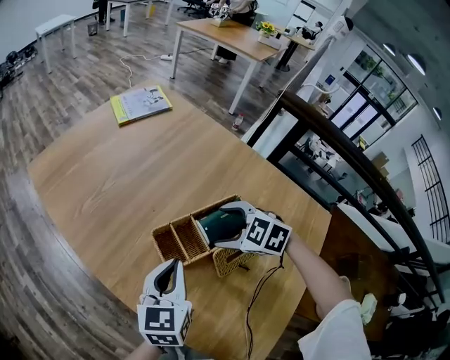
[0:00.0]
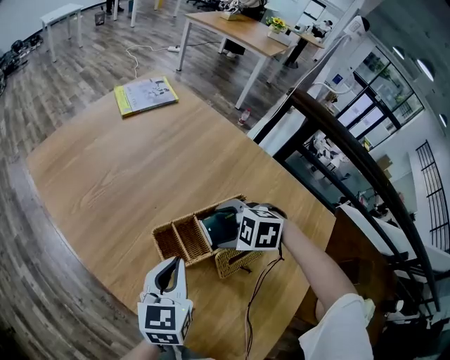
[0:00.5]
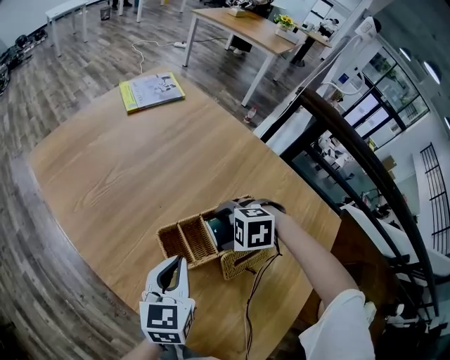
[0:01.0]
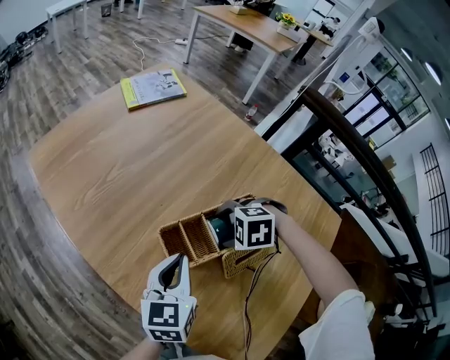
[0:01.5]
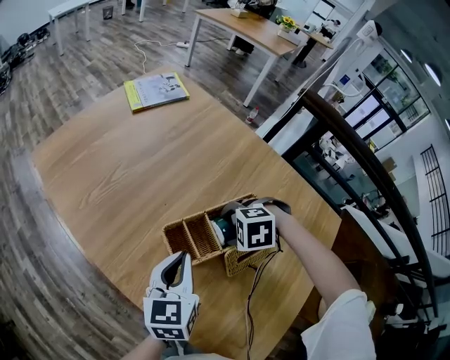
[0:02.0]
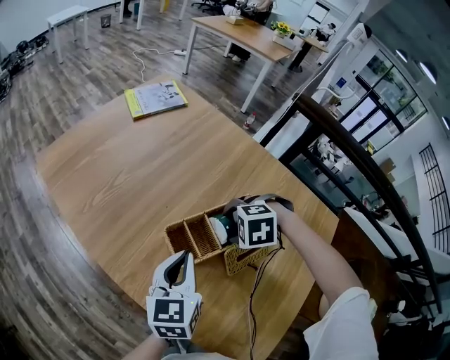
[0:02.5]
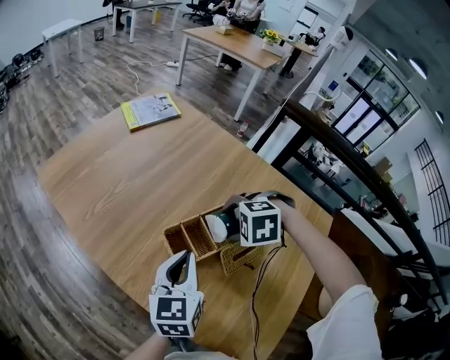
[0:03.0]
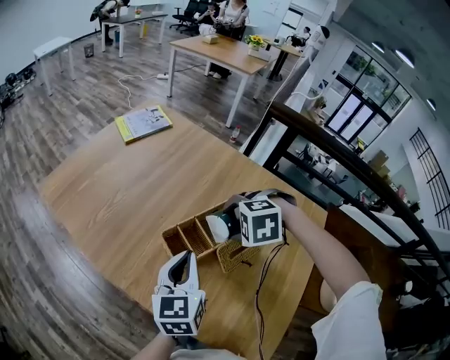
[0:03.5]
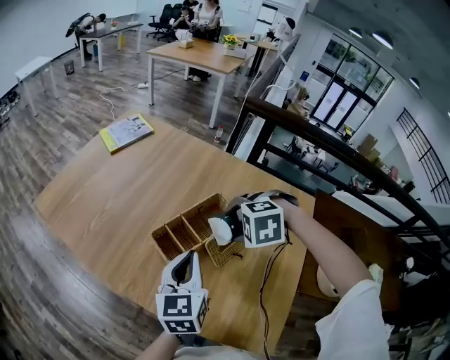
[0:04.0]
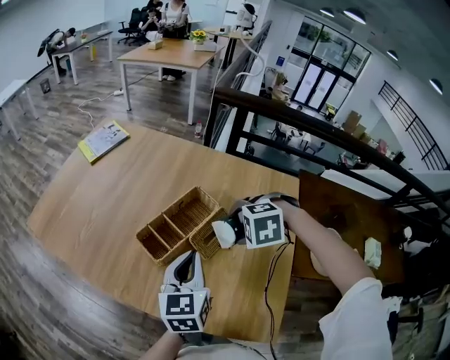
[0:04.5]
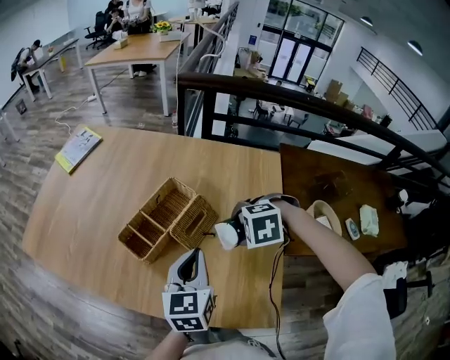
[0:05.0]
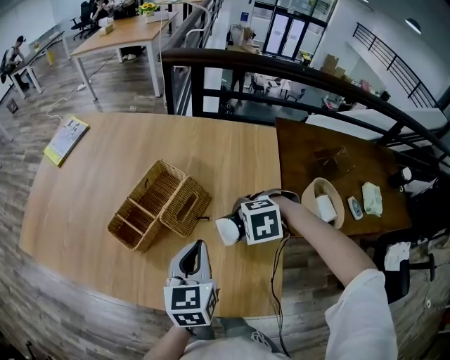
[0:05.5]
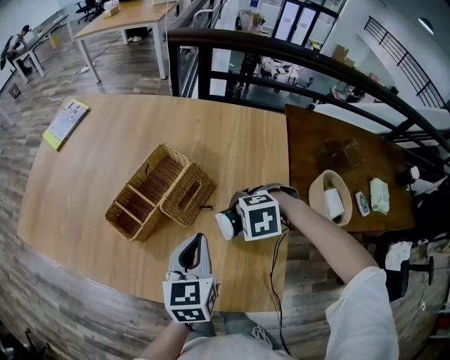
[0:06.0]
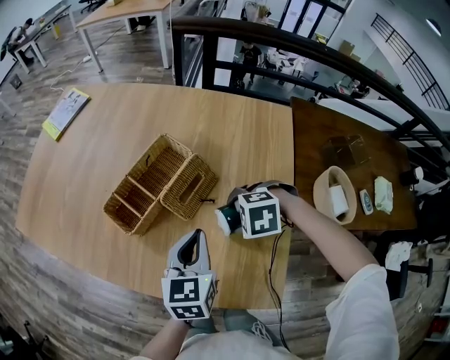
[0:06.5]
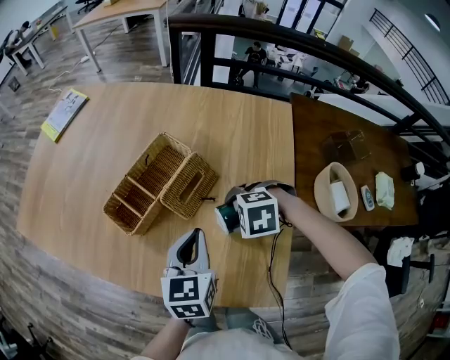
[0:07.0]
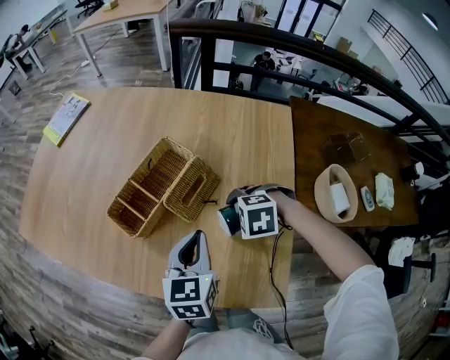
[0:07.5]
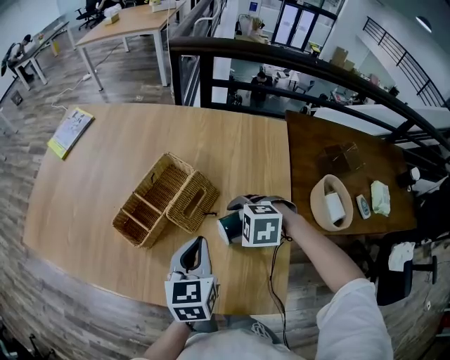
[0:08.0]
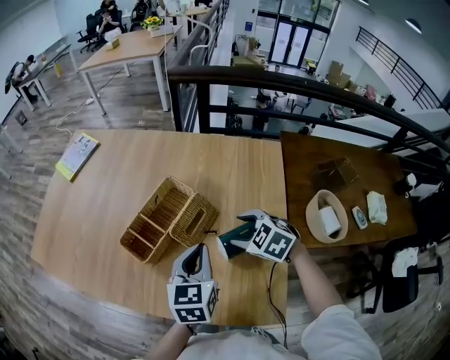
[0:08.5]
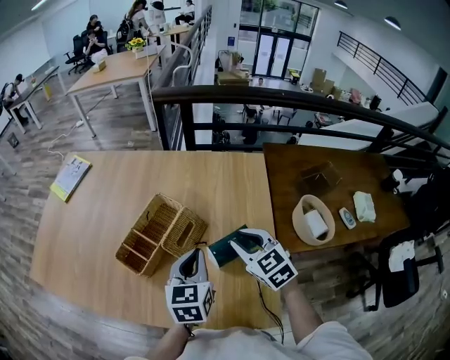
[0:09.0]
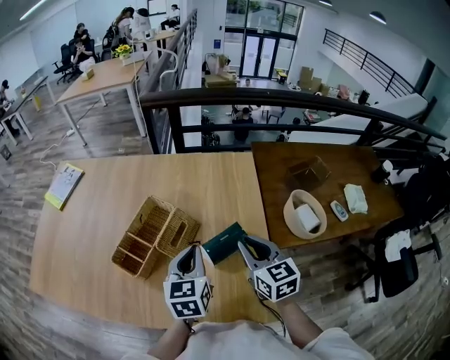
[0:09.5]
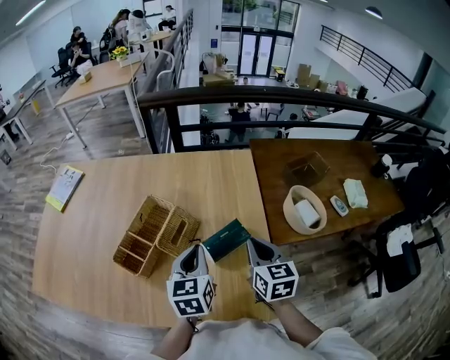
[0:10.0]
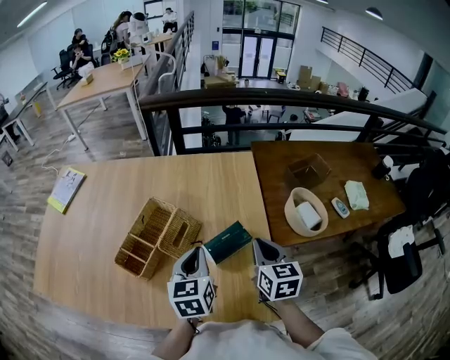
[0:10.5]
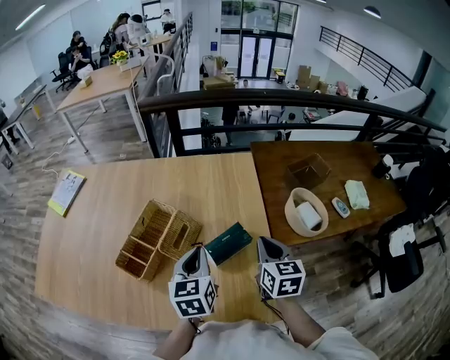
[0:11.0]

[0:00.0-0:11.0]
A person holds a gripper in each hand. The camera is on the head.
0:00.0 to 0:02.0: The right gripper shifts some 5 cm downward, and rotates about 40 degrees.
0:02.0 to 0:03.5: The right gripper moves upward, about 10 cm; the left gripper goes roughly 5 cm upward.
0:03.5 to 0:05.5: The left gripper moves about 20 cm, and rotates approximately 30 degrees. Meanwhile the right gripper moves roughly 25 cm, and rotates approximately 30 degrees.
0:05.5 to 0:07.5: The right gripper changes place by some 5 cm.
0:07.5 to 0:09.0: The right gripper is displaced upward by about 15 cm, tilts its fingers some 40 degrees upward, and closes. The left gripper moves upward, roughly 5 cm.
0:09.0 to 0:11.0: The right gripper moves to the right, some 10 cm, and swivels approximately 40 degrees.

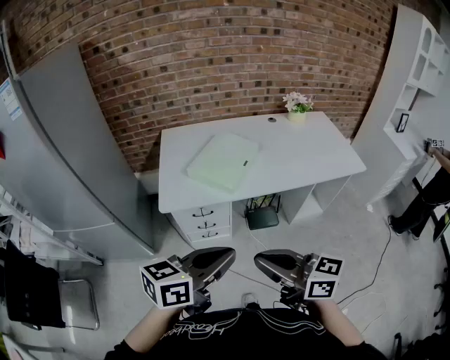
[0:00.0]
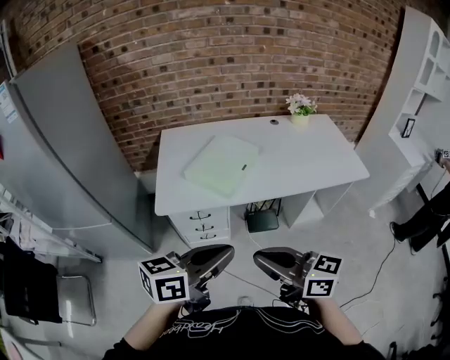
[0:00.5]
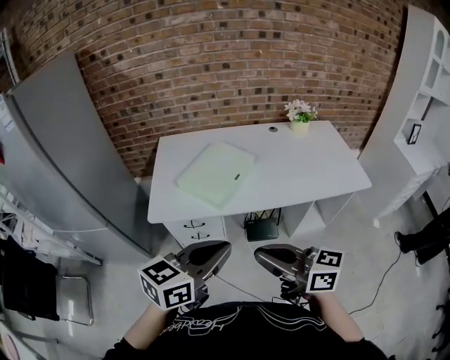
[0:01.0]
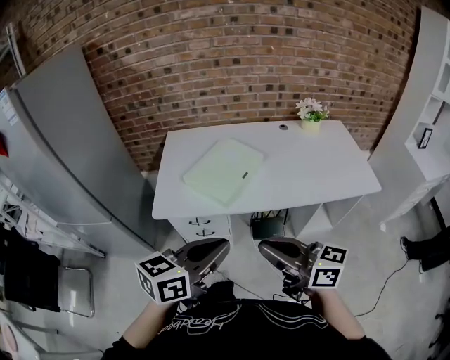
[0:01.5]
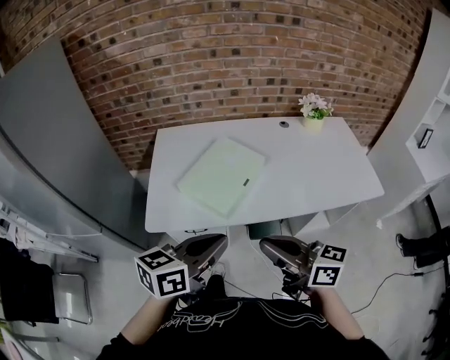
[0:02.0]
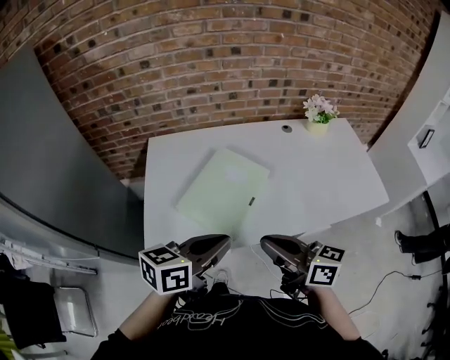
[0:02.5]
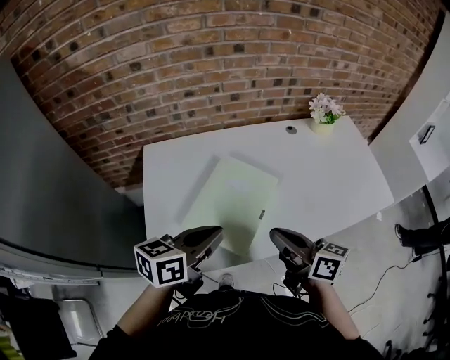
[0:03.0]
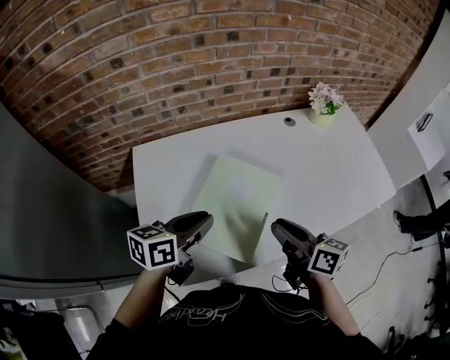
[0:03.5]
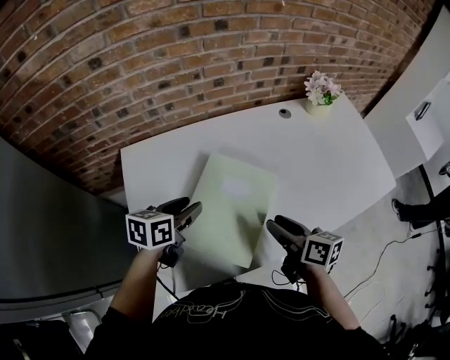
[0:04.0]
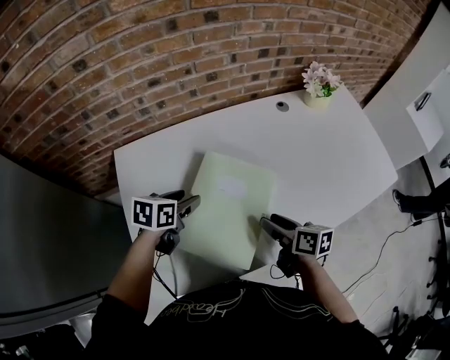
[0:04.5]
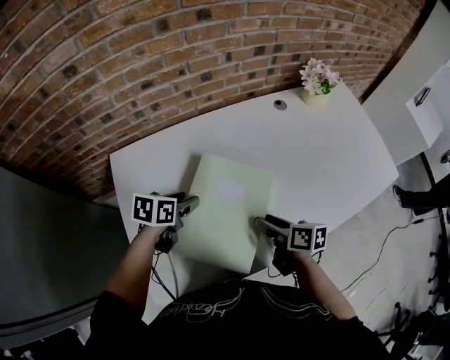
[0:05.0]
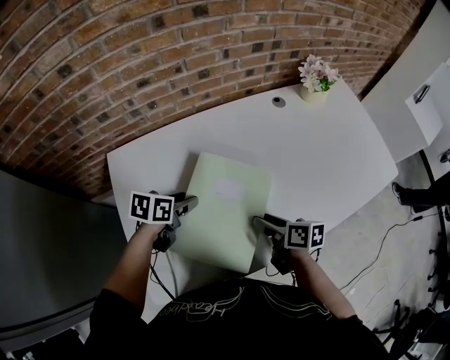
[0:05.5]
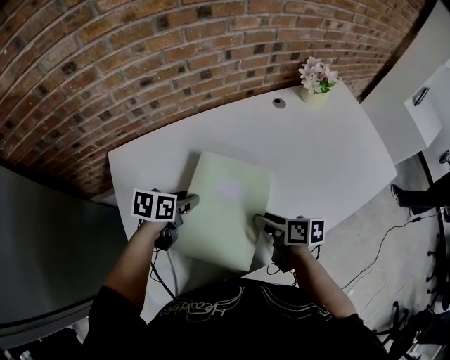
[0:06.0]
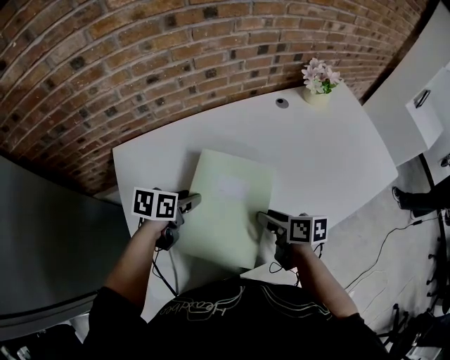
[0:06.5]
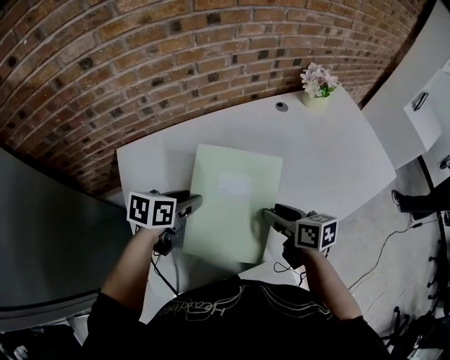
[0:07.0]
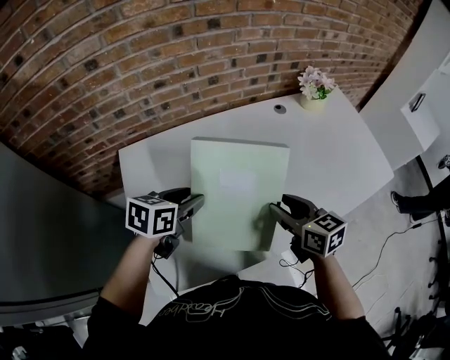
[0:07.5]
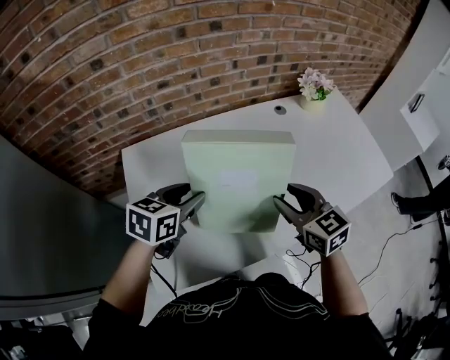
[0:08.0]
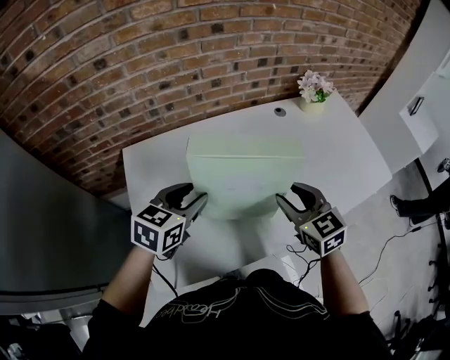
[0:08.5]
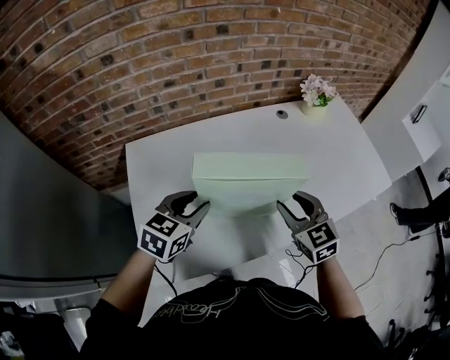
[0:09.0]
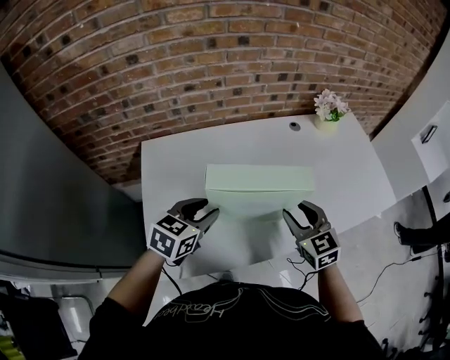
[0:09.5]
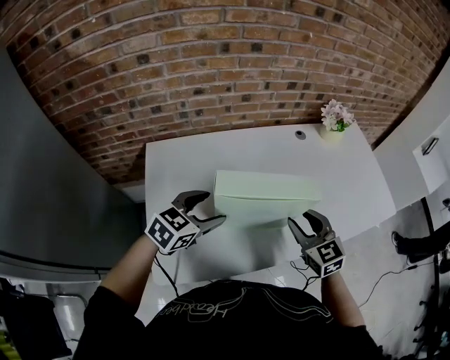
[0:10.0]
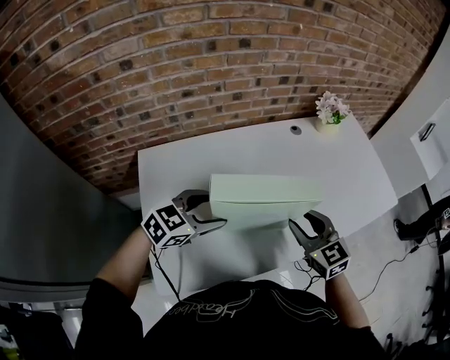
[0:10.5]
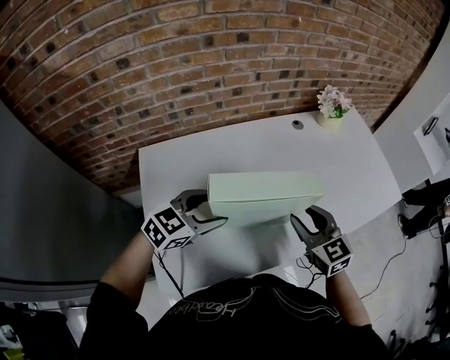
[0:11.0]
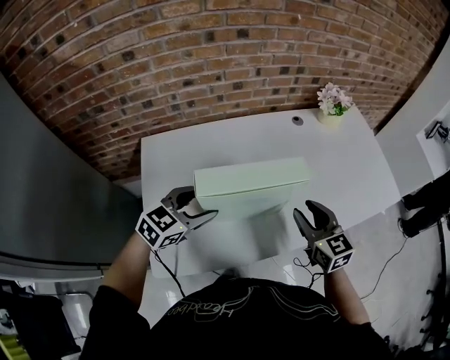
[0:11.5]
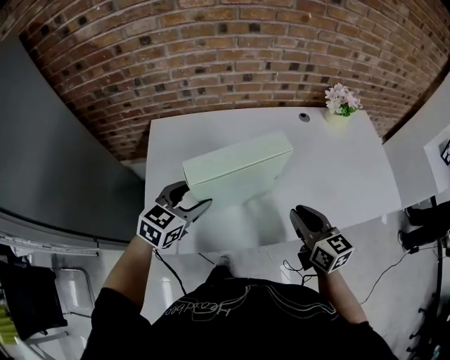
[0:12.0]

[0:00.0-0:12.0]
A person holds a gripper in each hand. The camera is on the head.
0:00.0 to 0:02.0: The right gripper goes about 20 cm forward and to the right. The left gripper moves forward, about 20 cm.
0:02.0 to 0:04.0: The left gripper travels forward, to the left and downward by roughly 40 cm, changes its angle by about 20 degrees, and opens; the right gripper travels forward and downward by roughly 30 cm, turns by approximately 40 degrees, and opens its fingers.
0:04.0 to 0:06.0: The grippers both shift downward by approximately 10 cm.
0:06.0 to 0:08.0: Both grippers travel together upward, some 15 cm. The left gripper swivels roughly 20 degrees. Meanwhile the right gripper twists about 50 degrees counterclockwise, seen from behind.
0:08.0 to 0:10.0: The left gripper opens its fingers.
0:10.0 to 0:12.0: The right gripper changes place by approximately 5 cm, and swivels approximately 30 degrees.

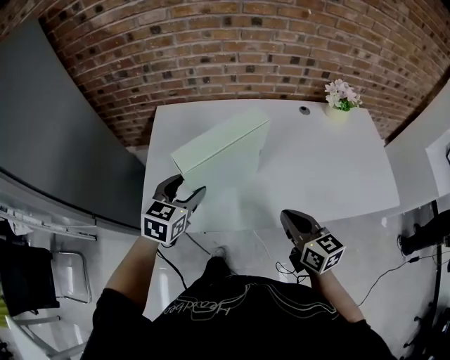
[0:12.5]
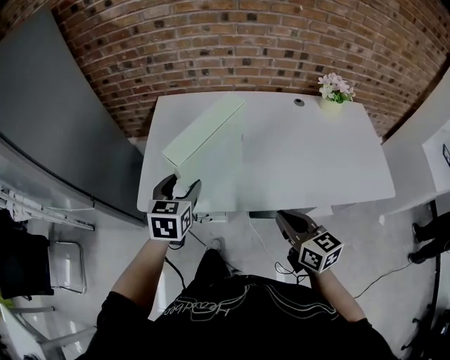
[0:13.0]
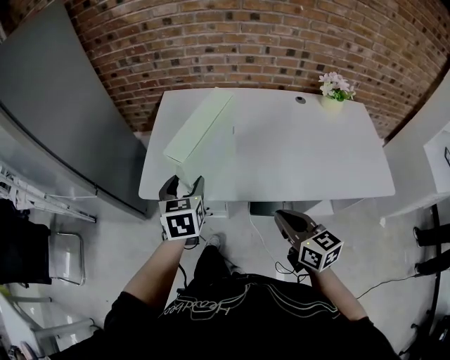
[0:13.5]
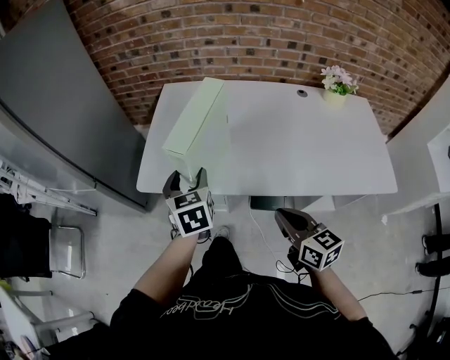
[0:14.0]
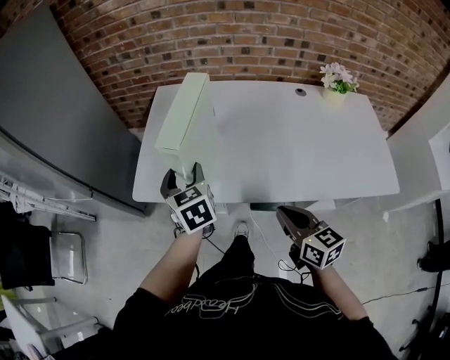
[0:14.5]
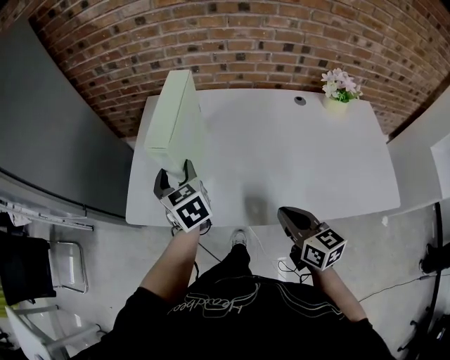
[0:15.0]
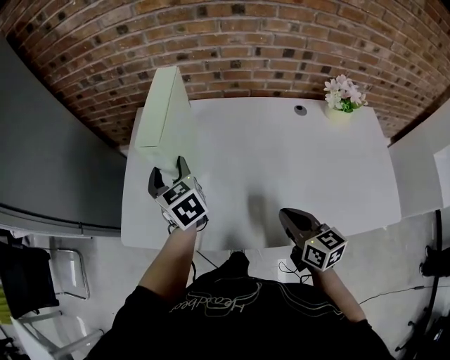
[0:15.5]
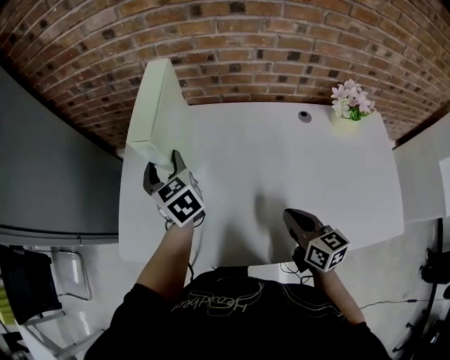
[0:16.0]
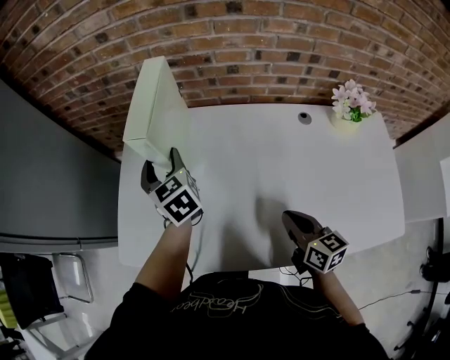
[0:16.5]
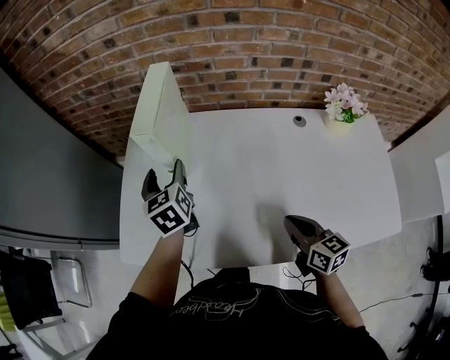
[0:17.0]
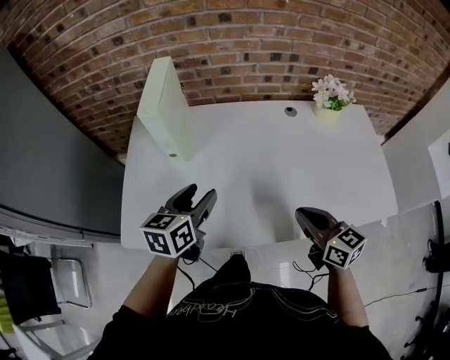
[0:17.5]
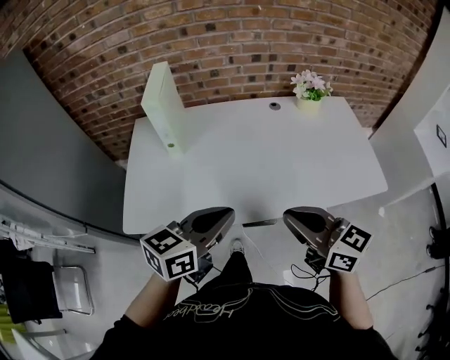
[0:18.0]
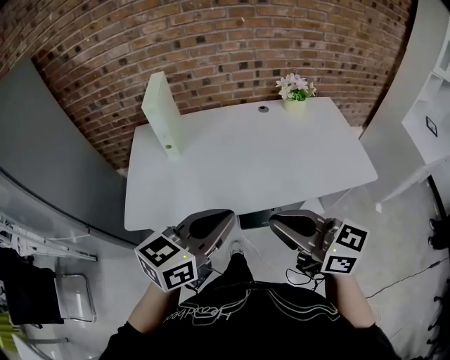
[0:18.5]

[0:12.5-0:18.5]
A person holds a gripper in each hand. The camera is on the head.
0:12.5 to 0:14.5: The left gripper swivels about 50 degrees. The right gripper shifts by roughly 10 cm.
0:14.5 to 0:16.5: The right gripper heads to the right and forward, covering roughly 25 cm; the left gripper travels forward and to the right by some 25 cm.
0:16.5 to 0:18.5: The left gripper shifts by some 50 cm, swivels some 80 degrees, and closes its fingers. The right gripper moves some 35 cm, and rotates approximately 30 degrees.
